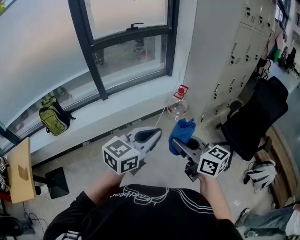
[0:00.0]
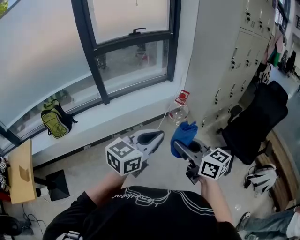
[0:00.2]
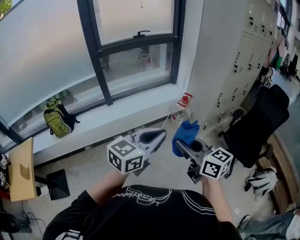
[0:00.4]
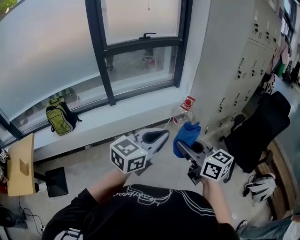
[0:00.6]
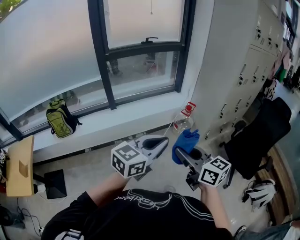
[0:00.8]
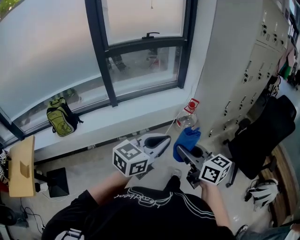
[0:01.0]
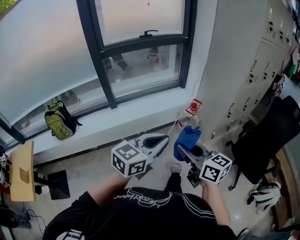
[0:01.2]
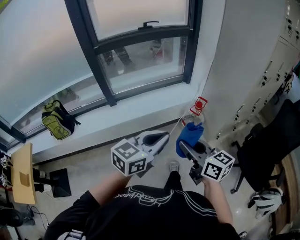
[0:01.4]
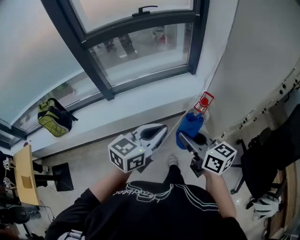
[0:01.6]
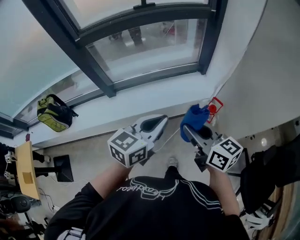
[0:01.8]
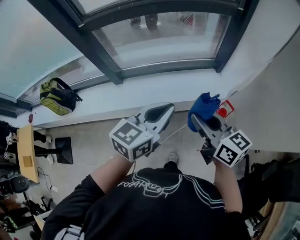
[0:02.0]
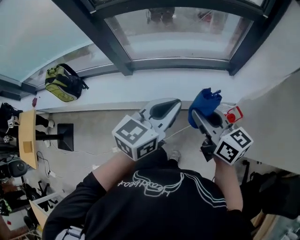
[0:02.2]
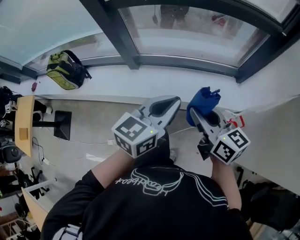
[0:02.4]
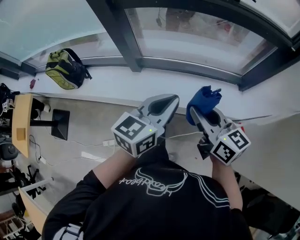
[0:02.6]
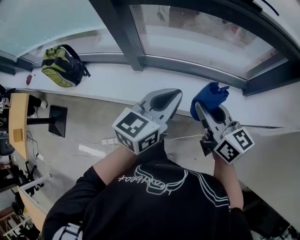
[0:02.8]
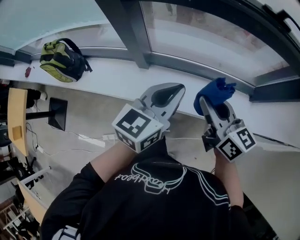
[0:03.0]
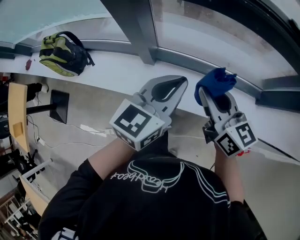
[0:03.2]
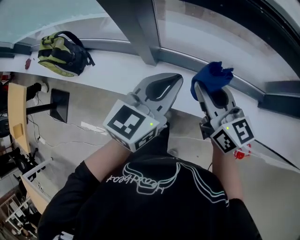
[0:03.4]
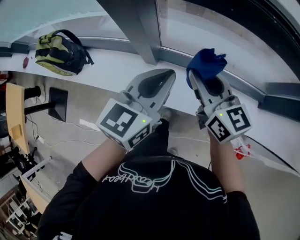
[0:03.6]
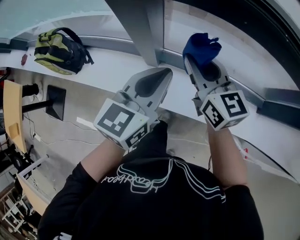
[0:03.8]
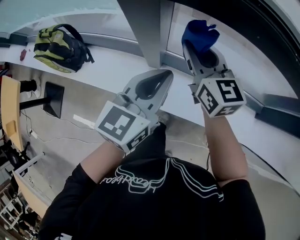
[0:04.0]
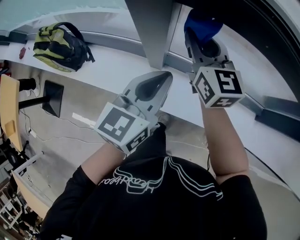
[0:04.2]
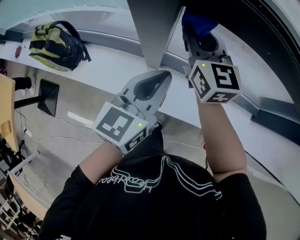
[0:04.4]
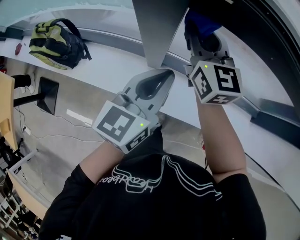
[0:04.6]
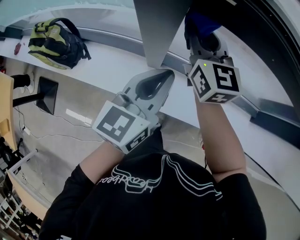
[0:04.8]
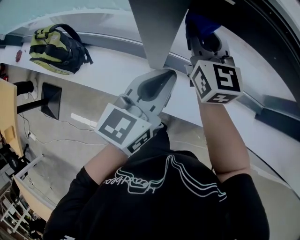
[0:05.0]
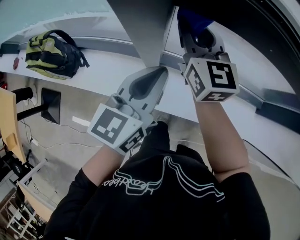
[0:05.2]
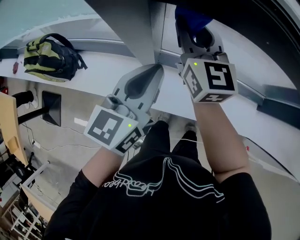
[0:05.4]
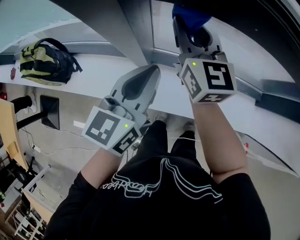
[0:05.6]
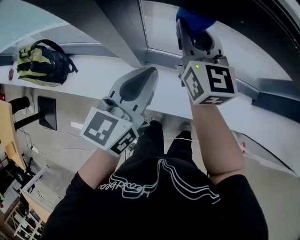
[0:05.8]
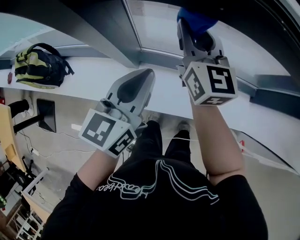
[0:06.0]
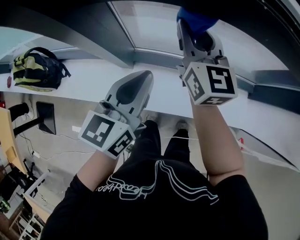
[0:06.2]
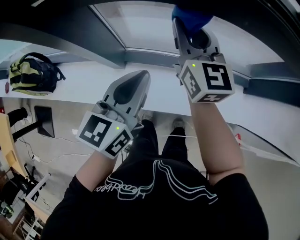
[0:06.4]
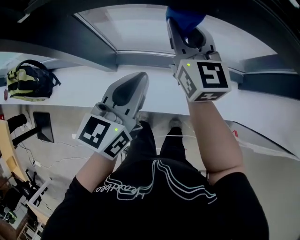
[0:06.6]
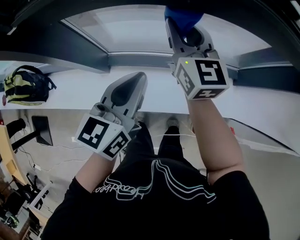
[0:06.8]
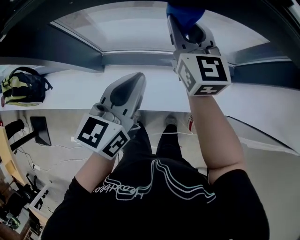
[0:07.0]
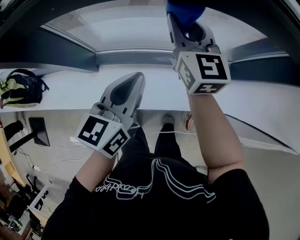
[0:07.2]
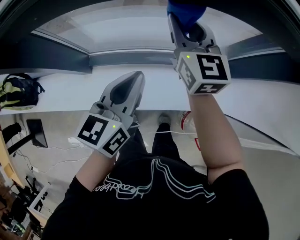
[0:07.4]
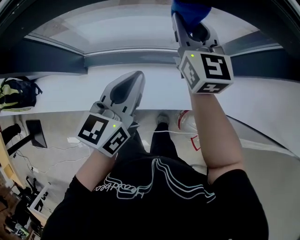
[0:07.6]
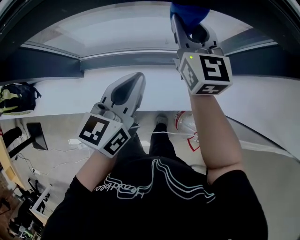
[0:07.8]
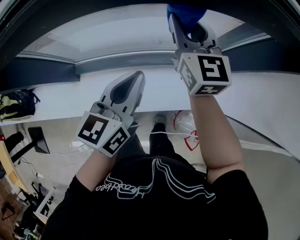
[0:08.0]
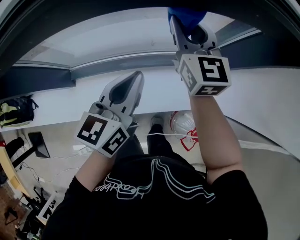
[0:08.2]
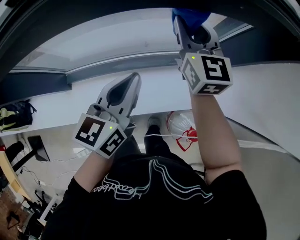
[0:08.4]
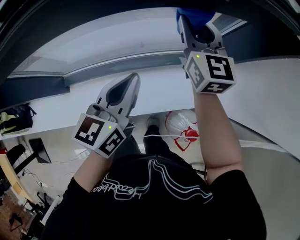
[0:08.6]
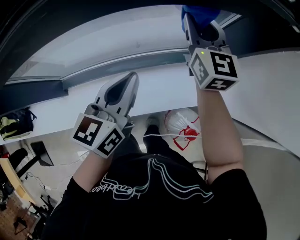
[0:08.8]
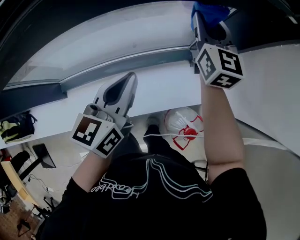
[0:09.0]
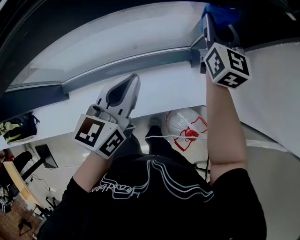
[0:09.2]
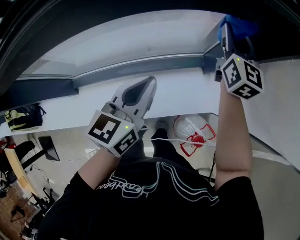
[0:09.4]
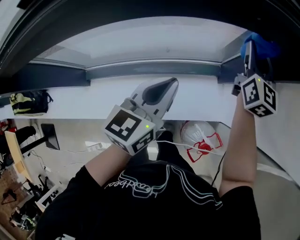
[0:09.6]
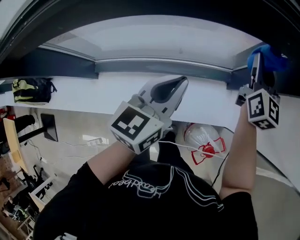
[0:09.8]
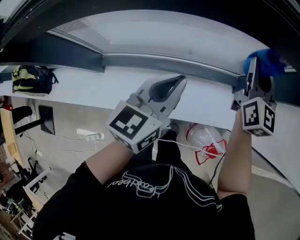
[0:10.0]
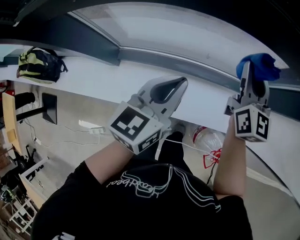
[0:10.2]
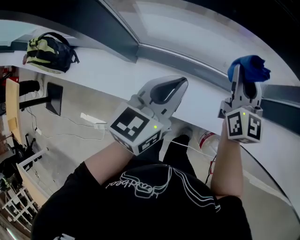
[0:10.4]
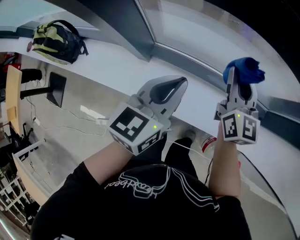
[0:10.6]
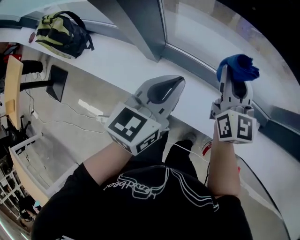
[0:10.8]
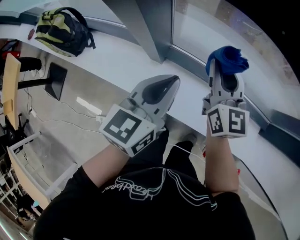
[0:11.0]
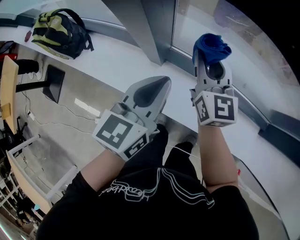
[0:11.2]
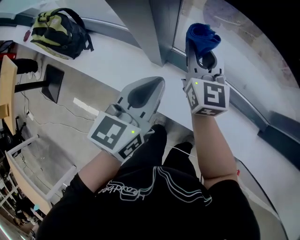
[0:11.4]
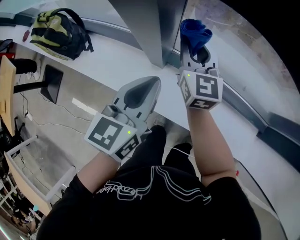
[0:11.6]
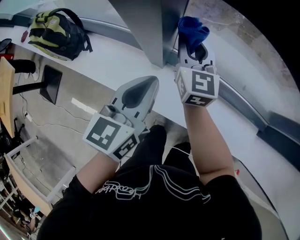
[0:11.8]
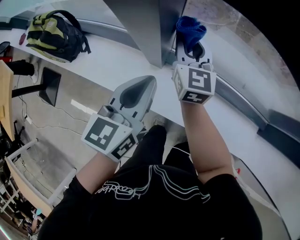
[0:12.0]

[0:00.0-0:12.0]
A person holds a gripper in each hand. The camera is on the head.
0:00.0 to 0:01.6: Both grippers move forward, approximately 40 cm.
0:01.6 to 0:03.0: The pair of grippers is taken approximately 50 cm. The right gripper turns by approximately 20 degrees, while the left gripper changes its angle by about 30 degrees.
0:03.0 to 0:04.4: The left gripper is displaced to the left and forward by some 20 cm, while the right gripper travels forward and to the left by some 35 cm, and rotates some 20 degrees.
0:04.4 to 0:06.0: The right gripper moves to the right, approximately 15 cm. The left gripper travels to the right by approximately 5 cm.
0:06.0 to 0:07.6: Both grippers travel together to the right, approximately 30 cm.
0:07.6 to 0:09.0: The left gripper moves to the right, approximately 20 cm, while the right gripper moves to the right, about 30 cm.
0:09.0 to 0:10.4: The left gripper heads to the left, covering approximately 25 cm. Meanwhile the right gripper is displaced to the left and backward by approximately 35 cm, and swivels some 20 degrees.
0:10.4 to 0:12.0: Both grippers move to the left, about 35 cm.

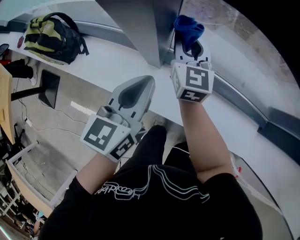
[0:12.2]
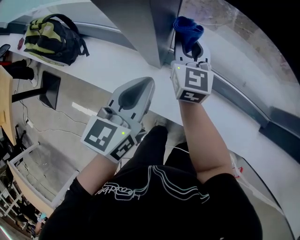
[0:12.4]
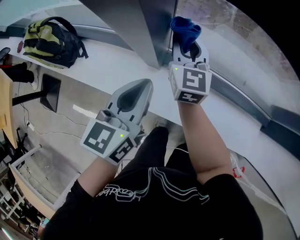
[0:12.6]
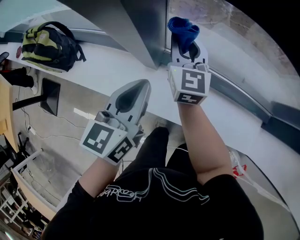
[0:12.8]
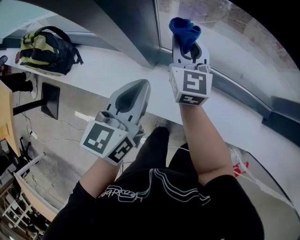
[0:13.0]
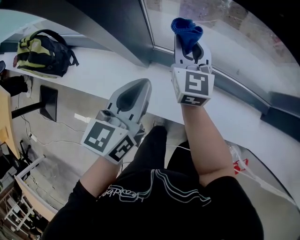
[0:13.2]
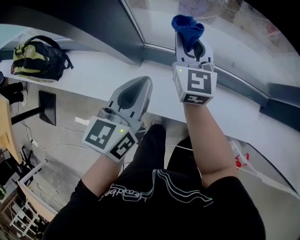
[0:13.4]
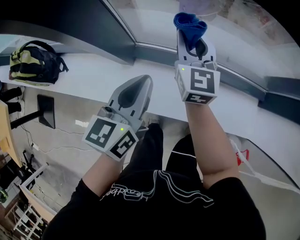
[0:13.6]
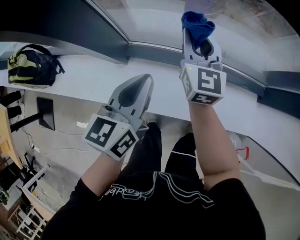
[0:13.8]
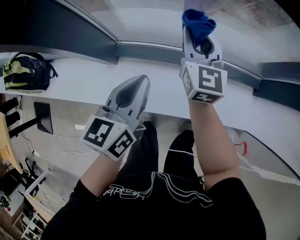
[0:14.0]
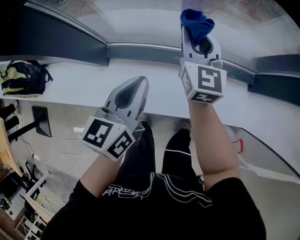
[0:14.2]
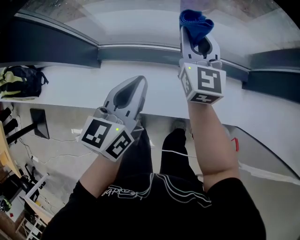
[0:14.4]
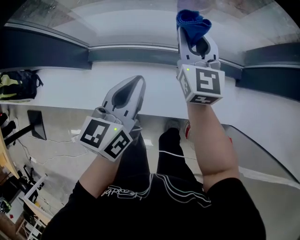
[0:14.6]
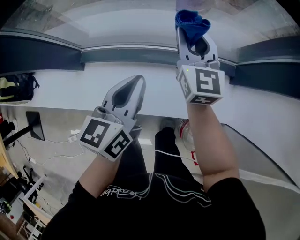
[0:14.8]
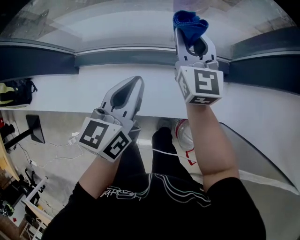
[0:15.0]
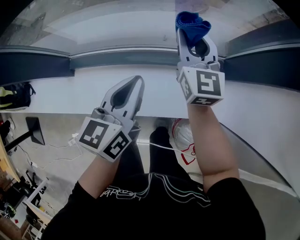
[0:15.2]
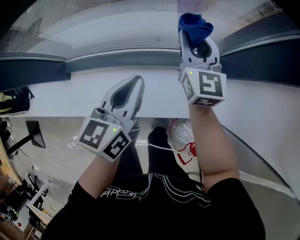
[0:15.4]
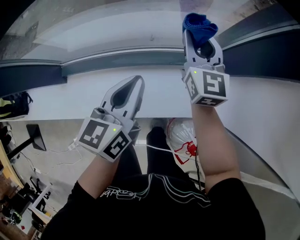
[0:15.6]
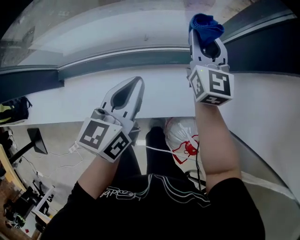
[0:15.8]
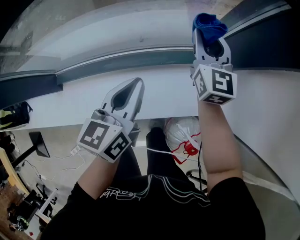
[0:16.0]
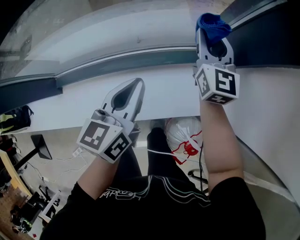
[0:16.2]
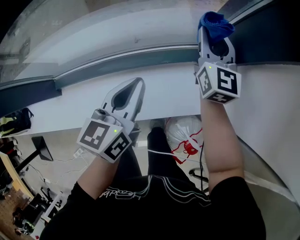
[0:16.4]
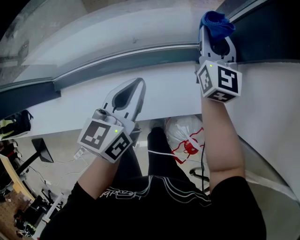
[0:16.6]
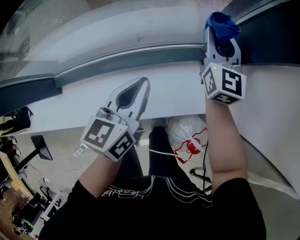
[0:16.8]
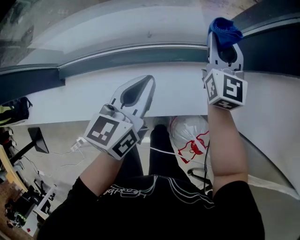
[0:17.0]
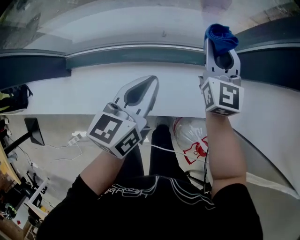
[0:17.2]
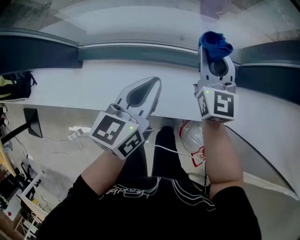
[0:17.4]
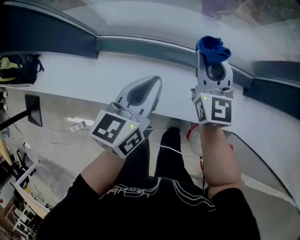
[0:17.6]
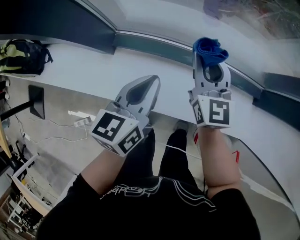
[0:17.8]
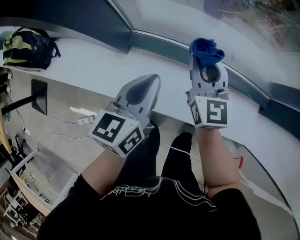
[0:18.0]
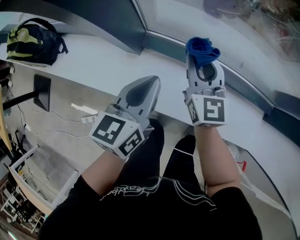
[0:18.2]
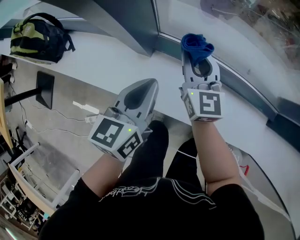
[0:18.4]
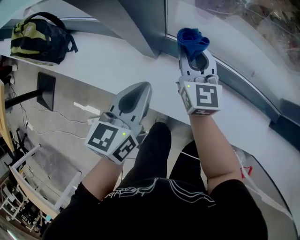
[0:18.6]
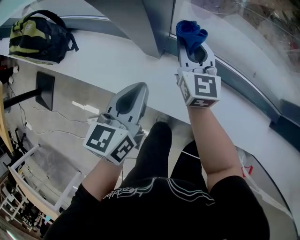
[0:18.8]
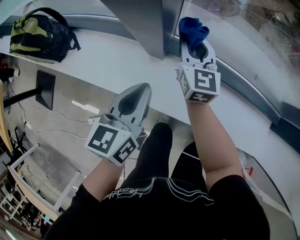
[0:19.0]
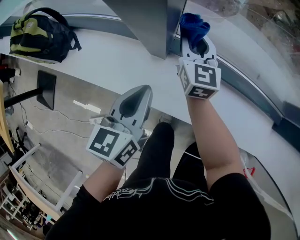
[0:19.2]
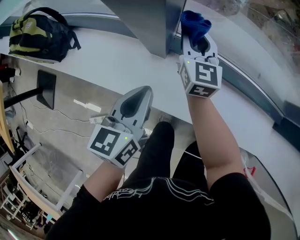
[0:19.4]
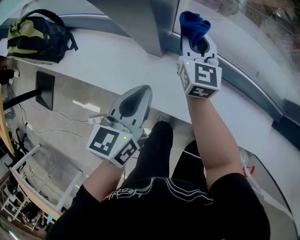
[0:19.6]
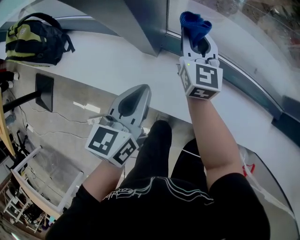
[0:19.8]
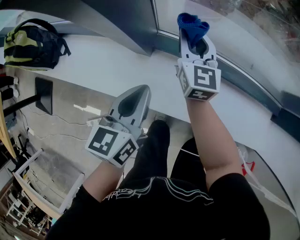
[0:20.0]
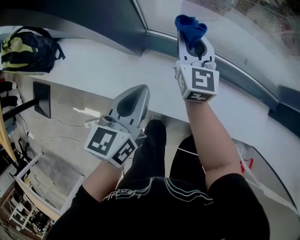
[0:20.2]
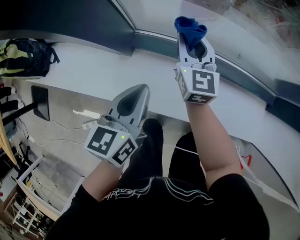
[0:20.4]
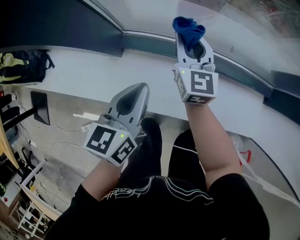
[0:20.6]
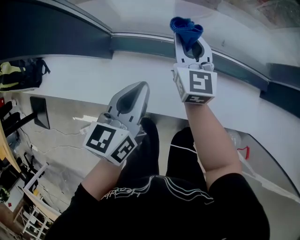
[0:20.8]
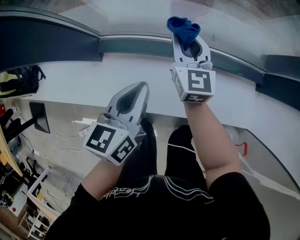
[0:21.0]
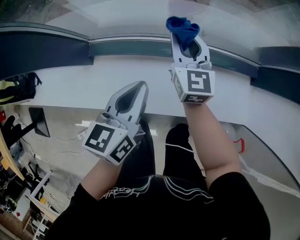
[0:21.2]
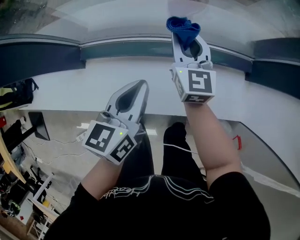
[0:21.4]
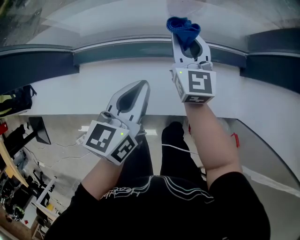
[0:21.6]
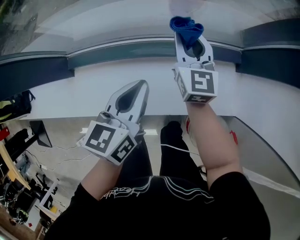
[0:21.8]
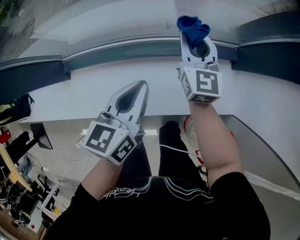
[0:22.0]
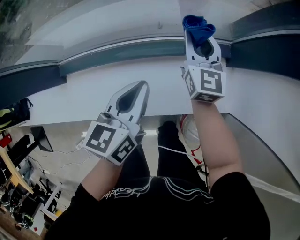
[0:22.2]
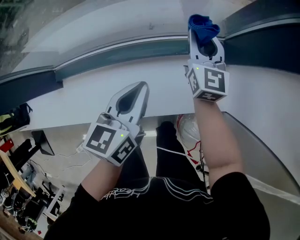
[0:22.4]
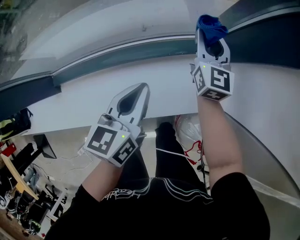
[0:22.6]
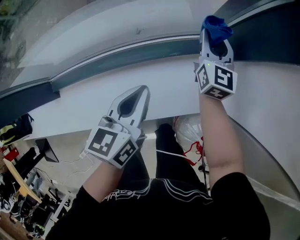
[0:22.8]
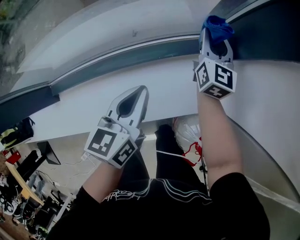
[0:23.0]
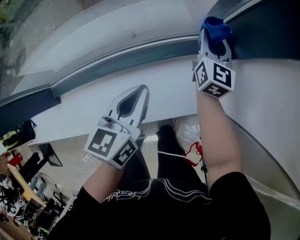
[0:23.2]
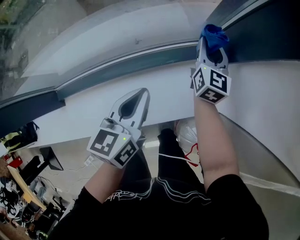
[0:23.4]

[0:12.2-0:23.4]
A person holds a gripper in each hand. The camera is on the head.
0:12.2 to 0:13.8: Both grippers move to the right, roughly 20 cm.
0:13.8 to 0:15.4: The two grippers go about 35 cm to the right.
0:15.4 to 0:17.0: The left gripper is displaced to the right by about 5 cm. The right gripper is displaced to the right by some 10 cm.
0:17.0 to 0:18.6: The pair of grippers is taken roughly 60 cm. The left gripper changes its angle by some 30 degrees; the right gripper swivels roughly 40 degrees.
0:18.6 to 0:20.2: The right gripper shifts approximately 5 cm to the right. Meanwhile the left gripper changes place by roughly 5 cm.
0:20.2 to 0:21.8: Both grippers travel together to the right, approximately 35 cm.
0:21.8 to 0:23.4: The right gripper travels to the right by about 25 cm, and swivels about 30 degrees. Meanwhile the left gripper shifts roughly 15 cm to the right and forward.
